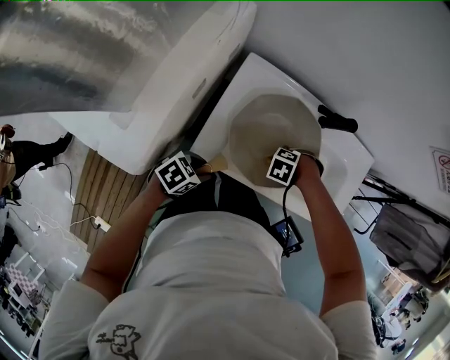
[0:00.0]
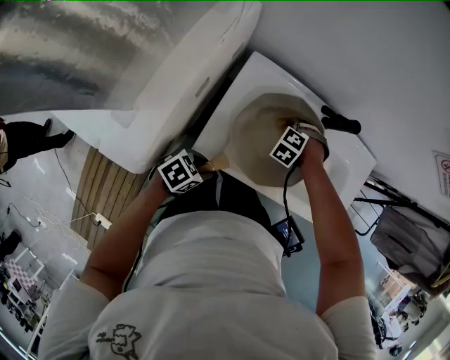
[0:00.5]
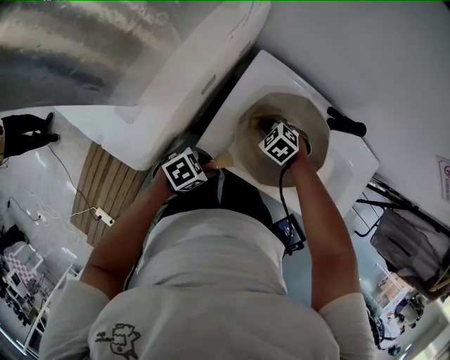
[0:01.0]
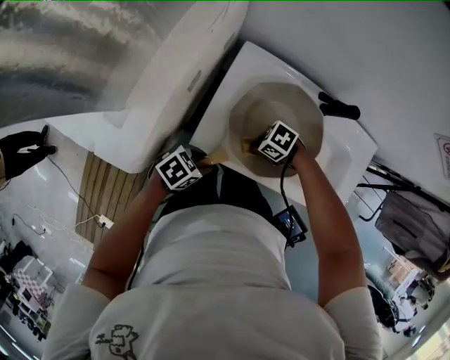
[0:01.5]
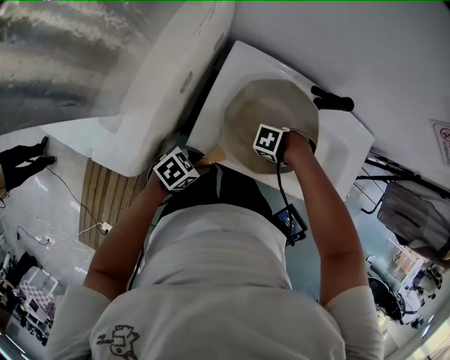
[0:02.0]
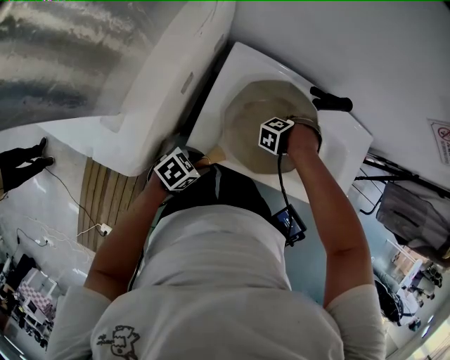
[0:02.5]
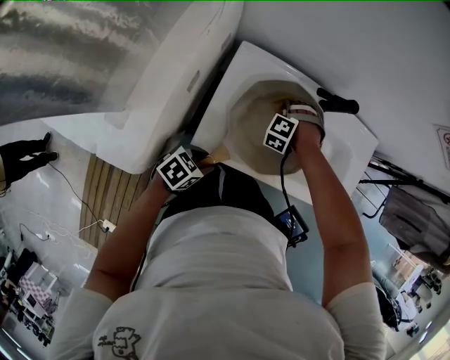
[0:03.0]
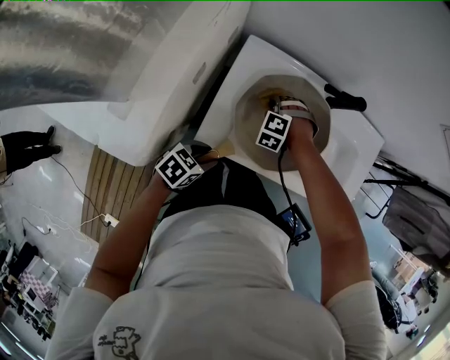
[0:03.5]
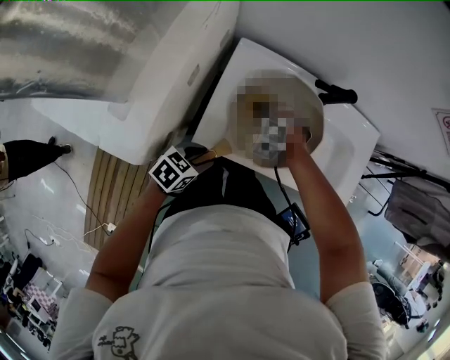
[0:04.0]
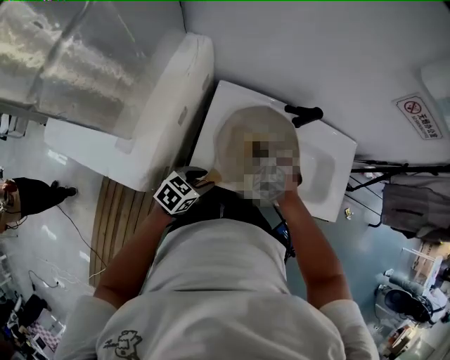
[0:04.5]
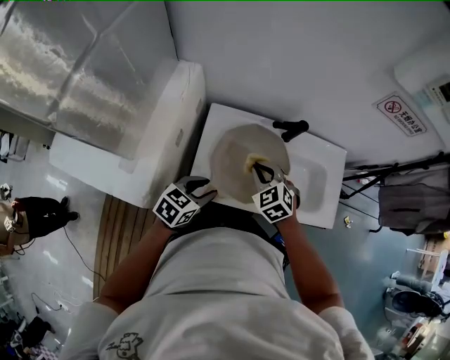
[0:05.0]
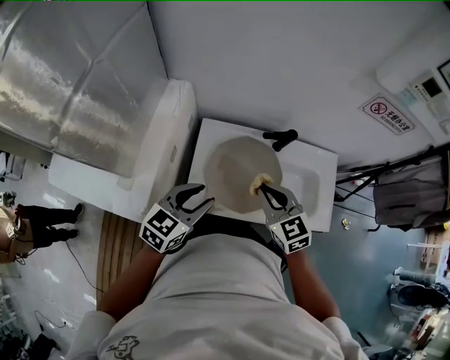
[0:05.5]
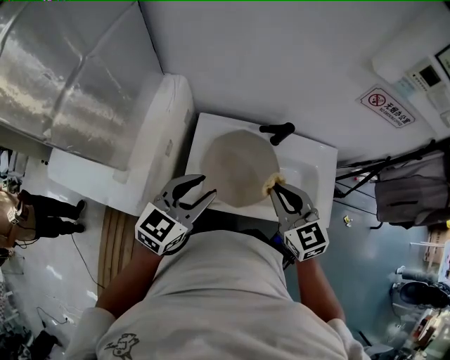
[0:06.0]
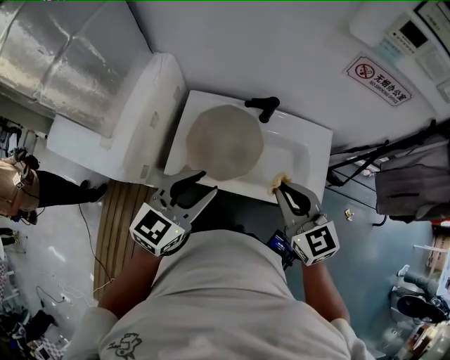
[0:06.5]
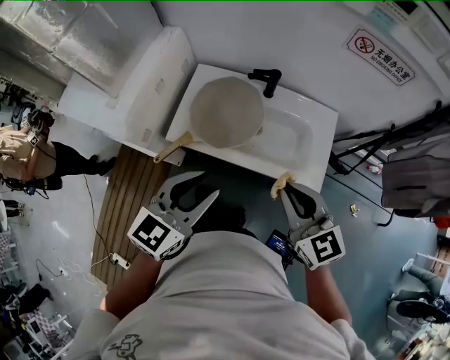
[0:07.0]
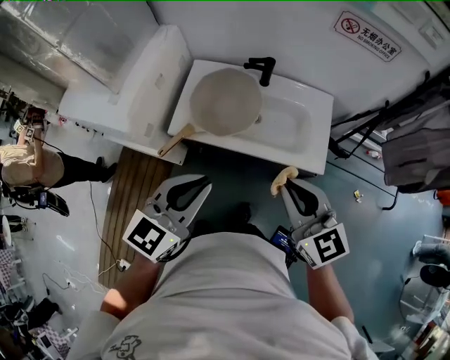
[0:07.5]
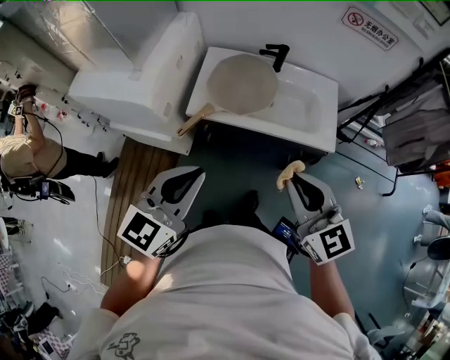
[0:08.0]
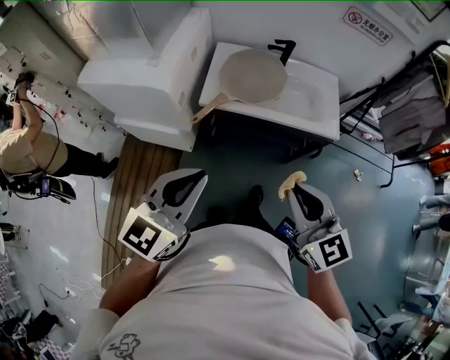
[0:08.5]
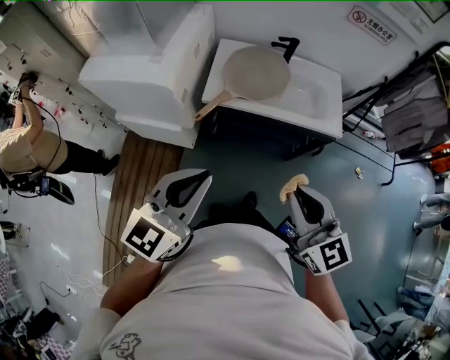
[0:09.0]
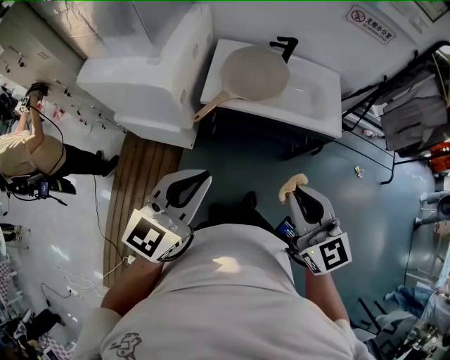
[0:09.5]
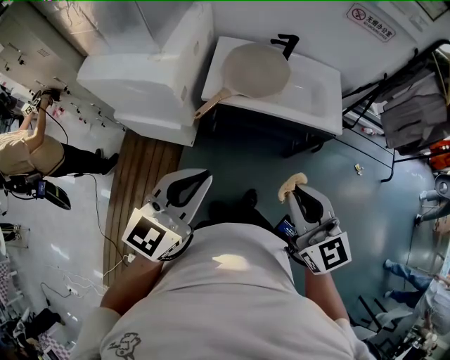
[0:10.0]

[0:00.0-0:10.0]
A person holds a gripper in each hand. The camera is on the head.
0:00.0 to 0:02.0: The right gripper rotates approximately 20 degrees.
0:02.0 to 0:04.0: The right gripper changes place by approximately 15 cm, and changes its angle by roughly 60 degrees.
0:04.0 to 0:06.0: The right gripper goes about 35 cm upward and to the right, and points its fingers roughly 40 degrees further upward. Meanwhile the left gripper shifts about 30 cm upward, and changes its angle by approximately 40 degrees.
0:06.0 to 0:08.0: Both grippers move backward, roughly 35 cm. The left gripper closes.
0:08.0 to 0:10.0: Both grippers travel together backward and to the left, approximately 15 cm.

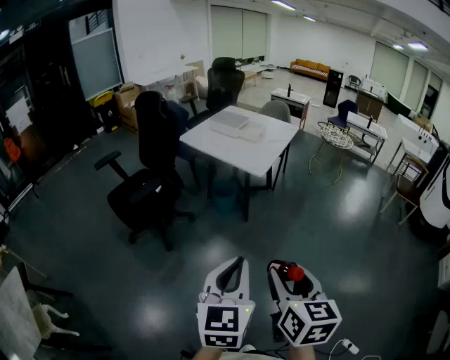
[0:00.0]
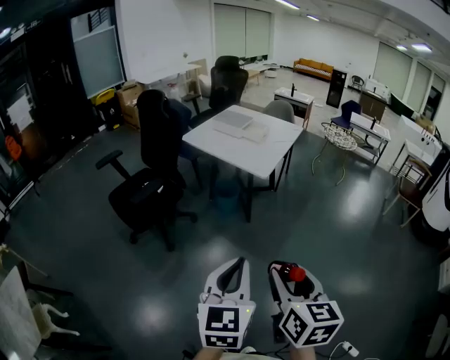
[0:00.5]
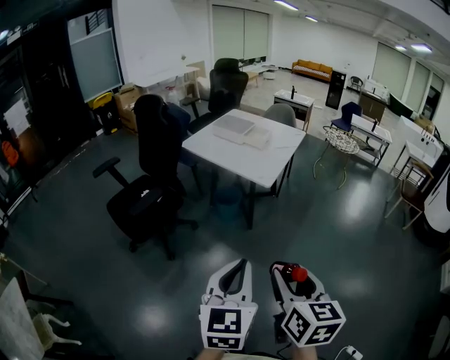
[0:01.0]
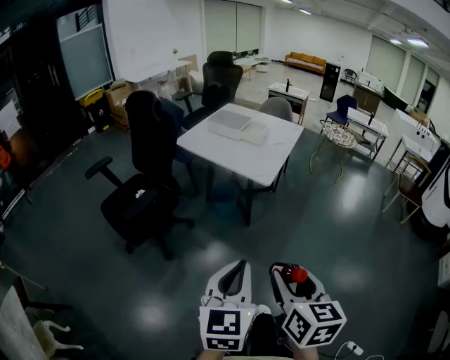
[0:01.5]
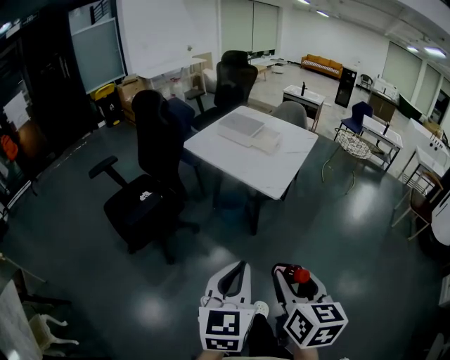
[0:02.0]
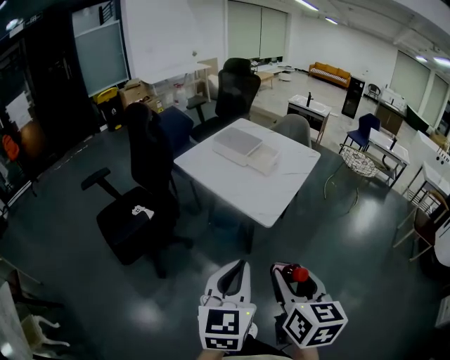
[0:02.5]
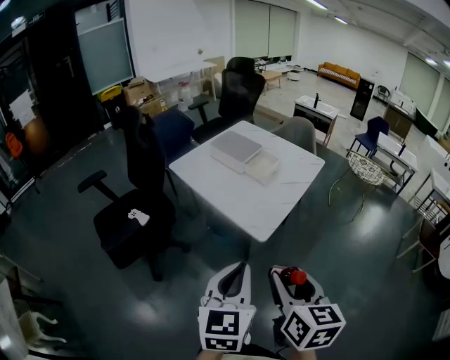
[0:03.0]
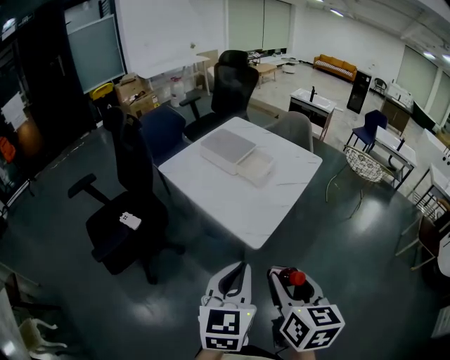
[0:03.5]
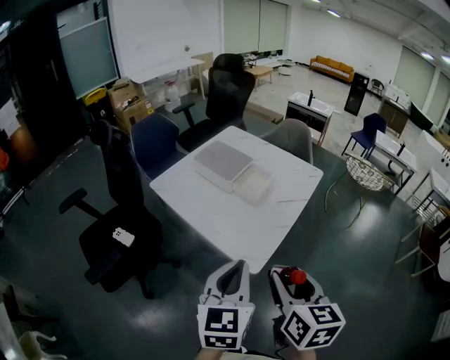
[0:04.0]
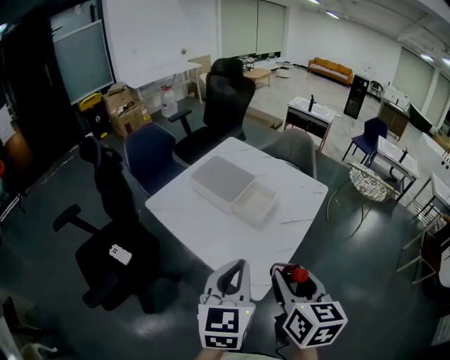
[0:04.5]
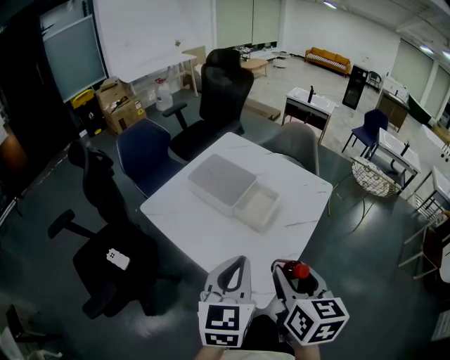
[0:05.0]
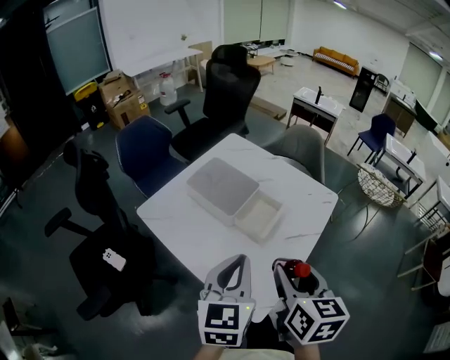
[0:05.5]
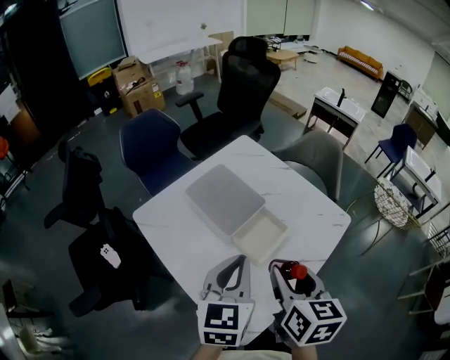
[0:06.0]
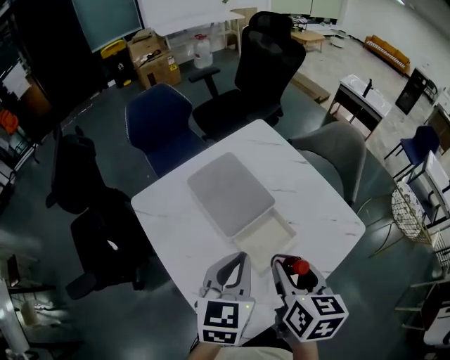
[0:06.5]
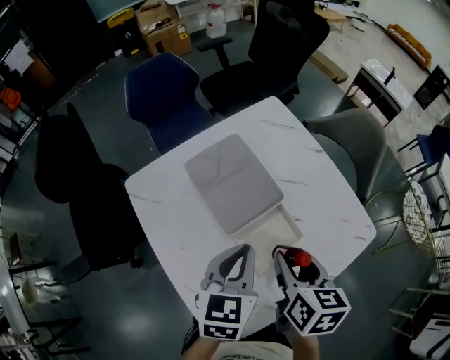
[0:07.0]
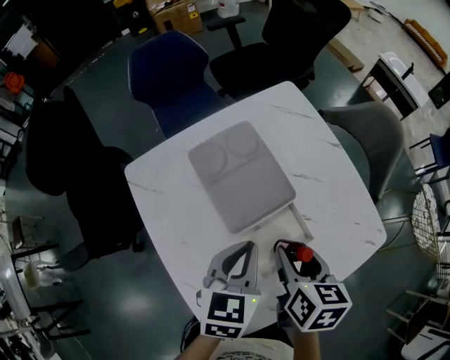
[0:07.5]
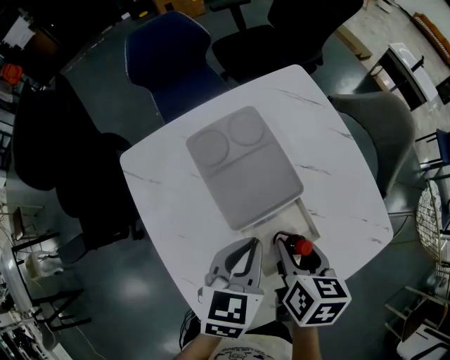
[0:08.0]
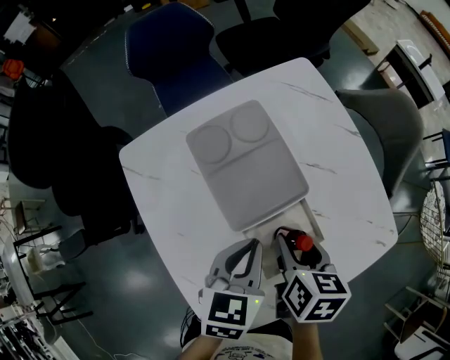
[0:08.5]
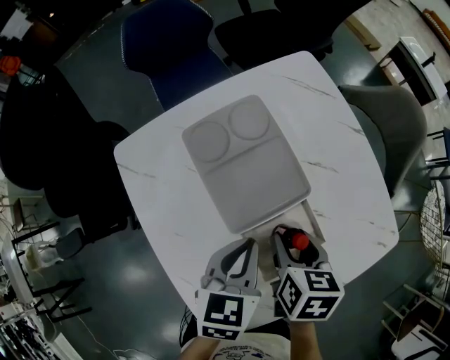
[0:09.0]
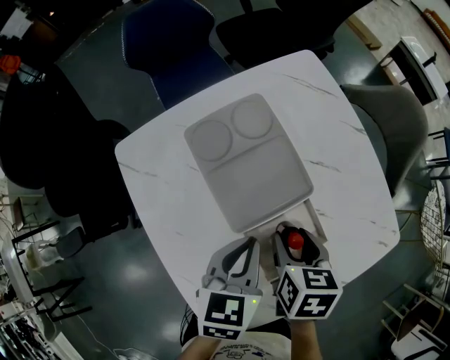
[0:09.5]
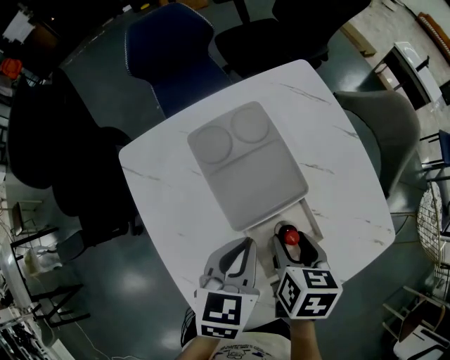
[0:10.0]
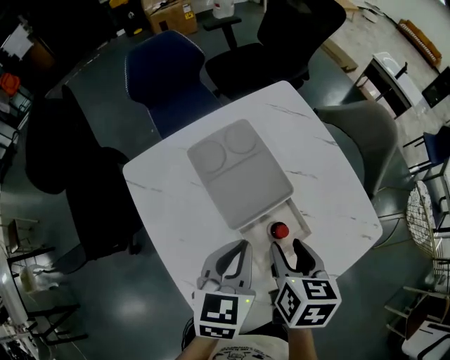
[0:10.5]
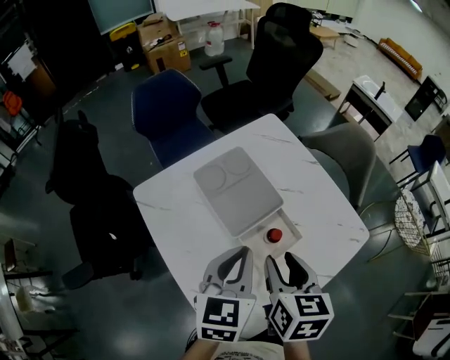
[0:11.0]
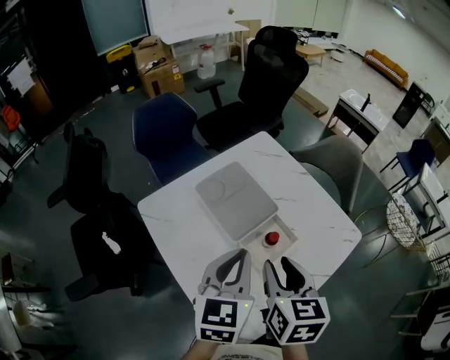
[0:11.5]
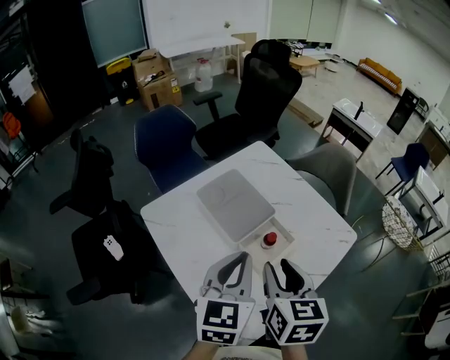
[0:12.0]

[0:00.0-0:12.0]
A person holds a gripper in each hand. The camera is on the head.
0:00.0 to 0:02.0: The two grippers go approximately 20 cm forward.
0:02.0 to 0:04.0: The grippers both shift forward by roughly 35 cm.
0:04.0 to 0:06.0: Both grippers travel together forward, some 35 cm.
0:06.0 to 0:08.0: The grippers both shift downward and forward by roughly 20 cm. The left gripper turns by about 20 degrees, while the right gripper changes its angle by about 30 degrees.
0:08.0 to 0:10.0: The grippers make only small movements.
0:10.0 to 0:12.0: The grippers both shift upward and backward by about 20 cm. The right gripper turns by about 30 degrees. Meanwhile the left gripper rotates some 30 degrees.

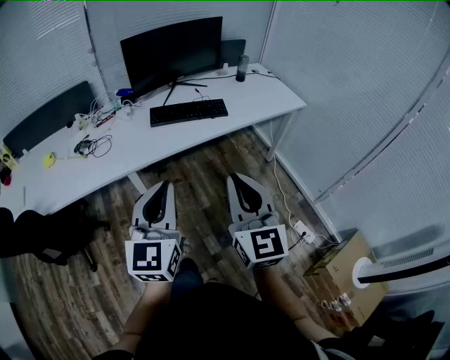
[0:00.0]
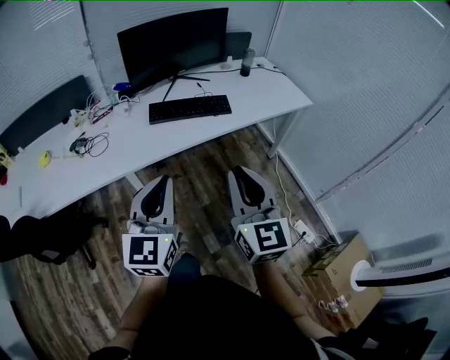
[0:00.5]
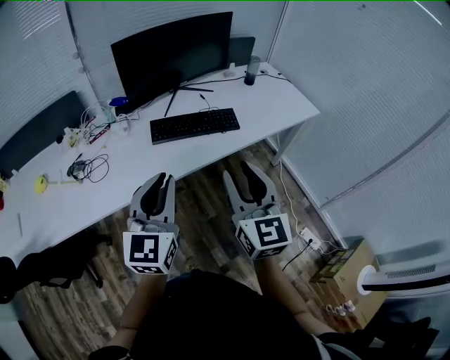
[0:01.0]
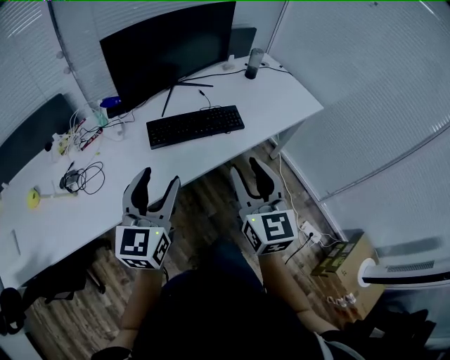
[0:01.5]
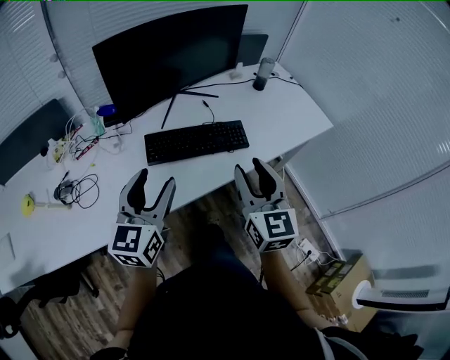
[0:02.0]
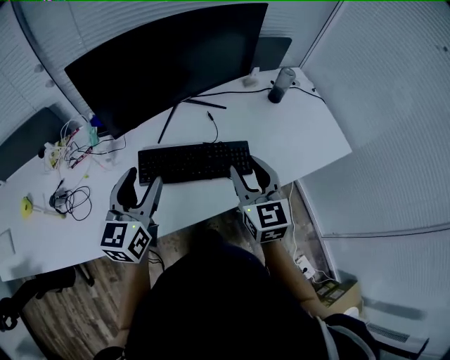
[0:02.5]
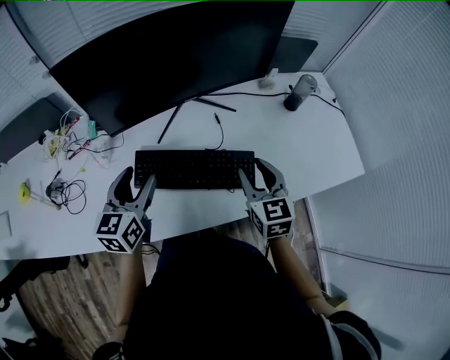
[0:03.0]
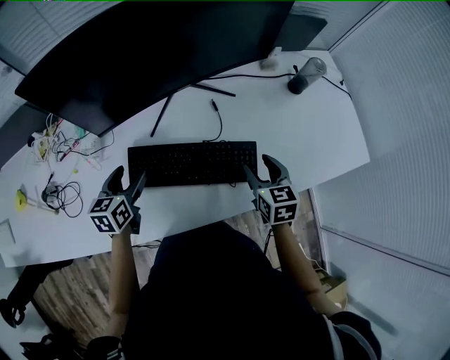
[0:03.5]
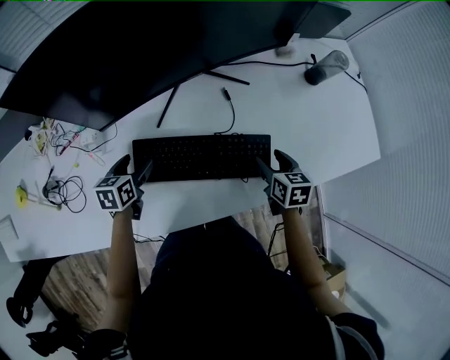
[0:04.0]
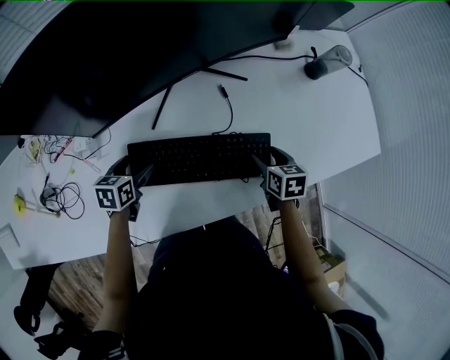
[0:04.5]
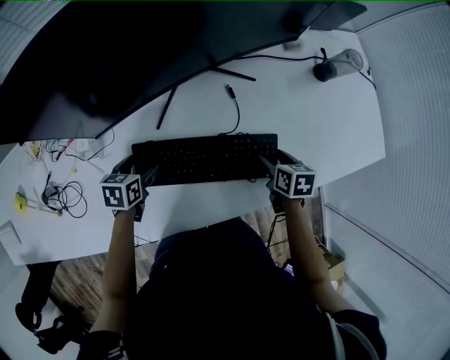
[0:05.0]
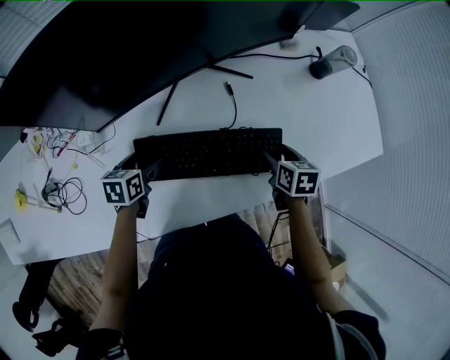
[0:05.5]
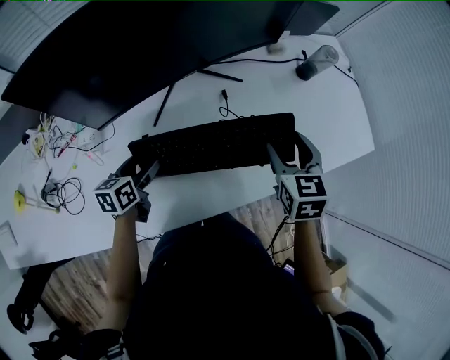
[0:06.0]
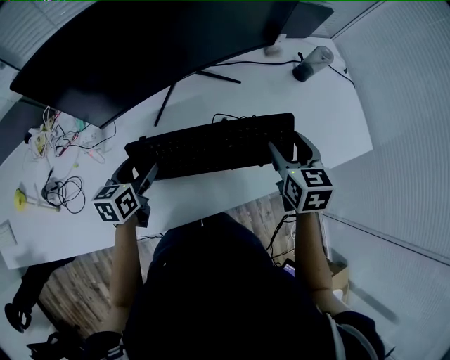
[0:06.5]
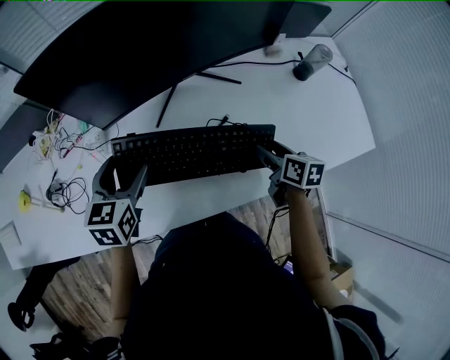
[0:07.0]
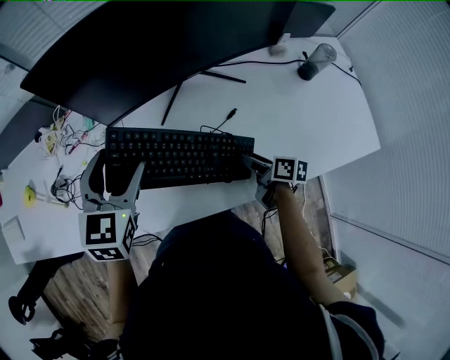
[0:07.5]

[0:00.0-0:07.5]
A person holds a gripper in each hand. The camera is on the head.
0:00.0 to 0:02.0: Both grippers move forward, roughly 40 cm. The left gripper opens, while the right gripper opens.
0:02.0 to 0:04.0: The right gripper moves forward, downward and to the right, about 40 cm, tips its fingers downward by roughly 40 degrees, and opens its fingers. Meanwhile the left gripper is displaced downward and forward by approximately 40 cm, and points its fingers about 40 degrees further downward.
0:04.0 to 0:05.5: The grippers stay close to where they were, moving slightly.
0:05.5 to 0:07.5: The right gripper travels upward and back again, roughly 15 cm each way, and rotates roughly 40 degrees. The left gripper moves upward, roughly 25 cm, and swivels about 40 degrees.
